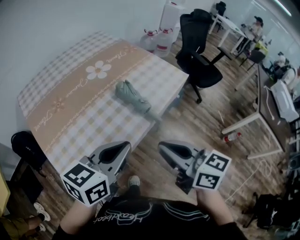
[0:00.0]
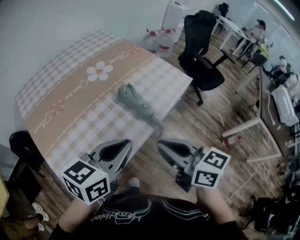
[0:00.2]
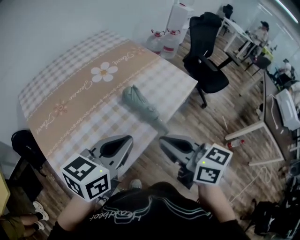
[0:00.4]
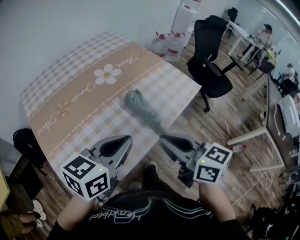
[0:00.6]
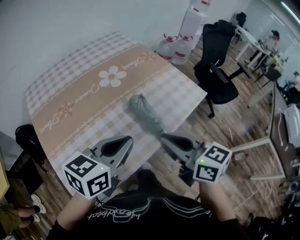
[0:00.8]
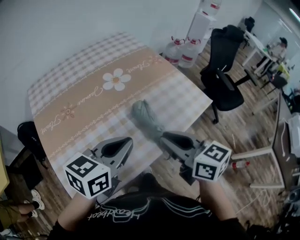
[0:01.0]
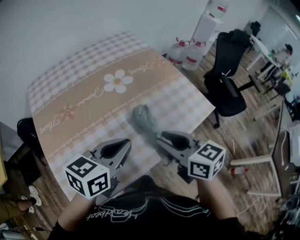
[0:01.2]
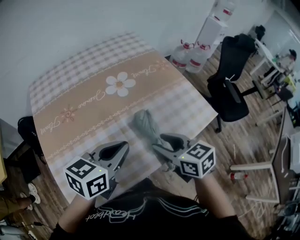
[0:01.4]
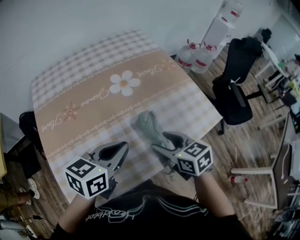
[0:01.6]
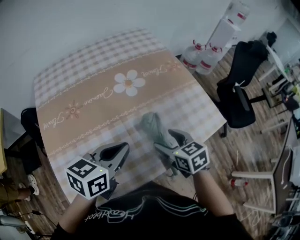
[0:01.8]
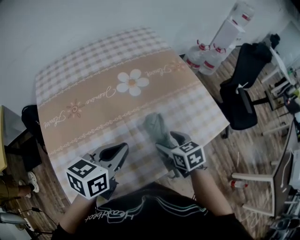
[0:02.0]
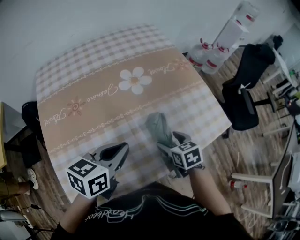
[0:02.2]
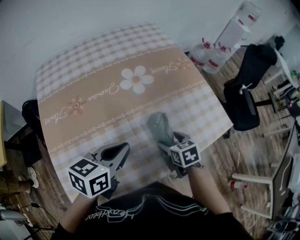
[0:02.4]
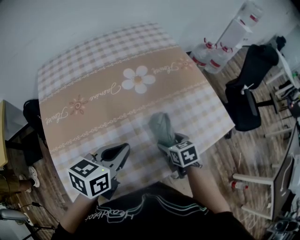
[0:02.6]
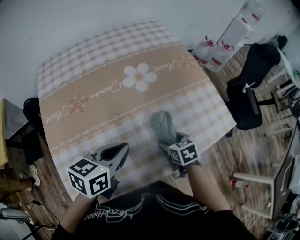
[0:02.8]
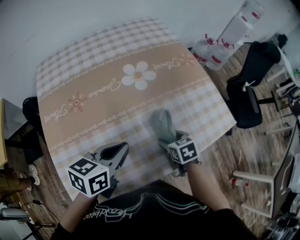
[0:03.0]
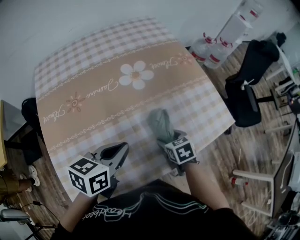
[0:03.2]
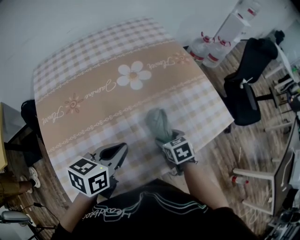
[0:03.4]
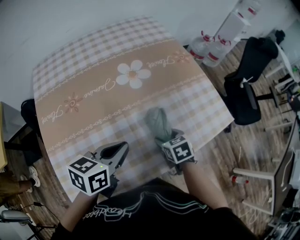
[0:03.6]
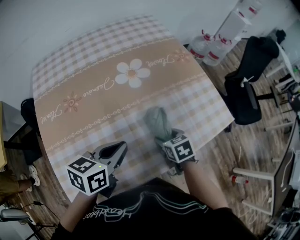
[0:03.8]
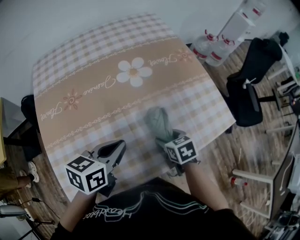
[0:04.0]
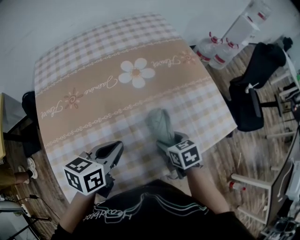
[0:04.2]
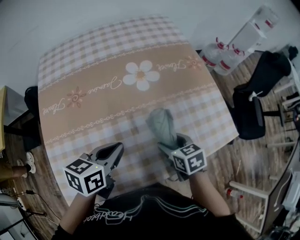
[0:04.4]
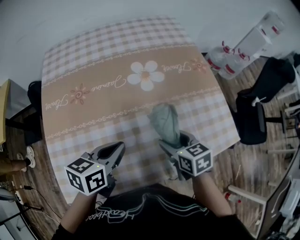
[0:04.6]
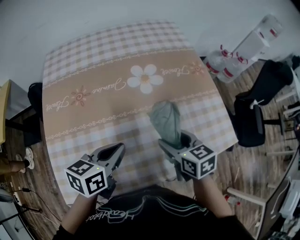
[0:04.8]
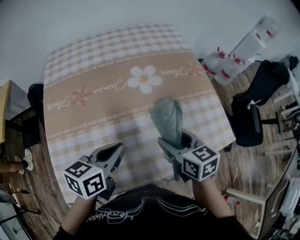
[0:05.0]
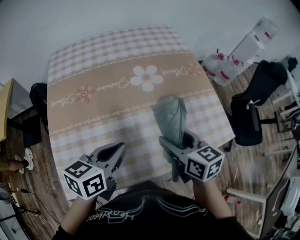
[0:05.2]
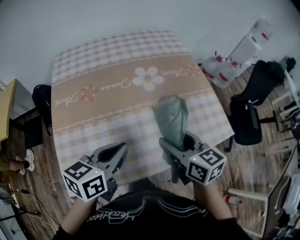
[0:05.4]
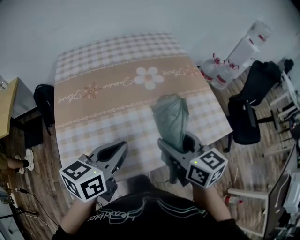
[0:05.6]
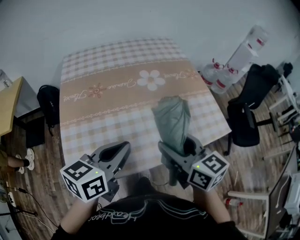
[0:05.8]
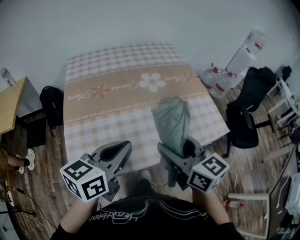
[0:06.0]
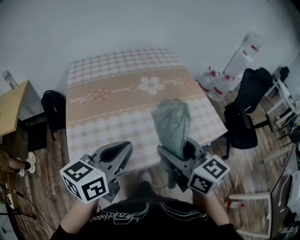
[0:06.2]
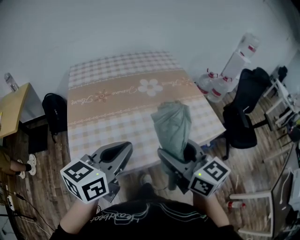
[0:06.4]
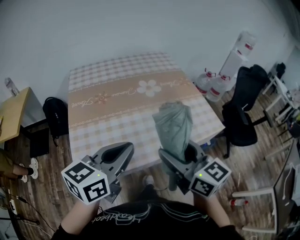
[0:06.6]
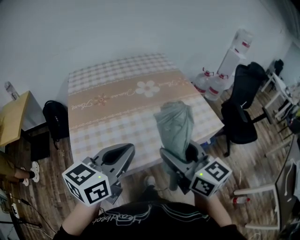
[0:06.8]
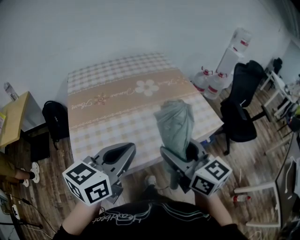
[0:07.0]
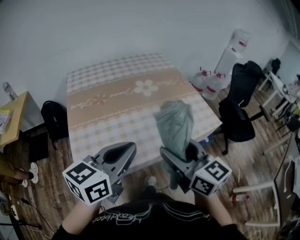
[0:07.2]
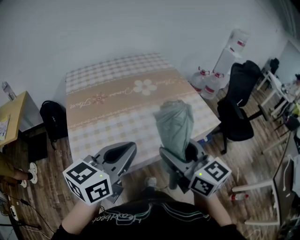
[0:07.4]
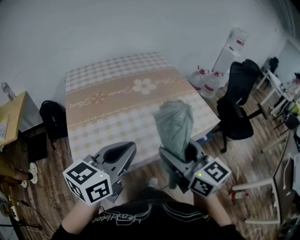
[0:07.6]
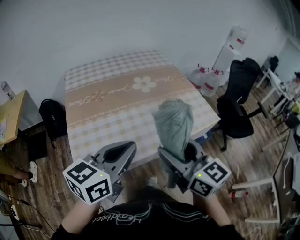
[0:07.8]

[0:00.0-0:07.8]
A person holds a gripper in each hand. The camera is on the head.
0:00.0 to 0:01.6: The left gripper is displaced forward by approximately 20 cm. Meanwhile the right gripper travels forward and downward by some 30 cm, turns by some 30 degrees, and opens up.
0:01.6 to 0:03.2: The right gripper is displaced downward by roughly 15 cm, and turns by approximately 20 degrees; the left gripper is displaced downward by roughly 5 cm.
0:03.2 to 0:04.6: The right gripper is displaced upward by about 10 cm.
0:04.6 to 0:06.2: The left gripper shifts about 25 cm backward and upward, and rotates some 20 degrees. The right gripper moves upward and backward, some 30 cm, and angles its fingers upward, by roughly 30 degrees.
0:06.2 to 0:07.8: The grippers both shift backward by some 5 cm.

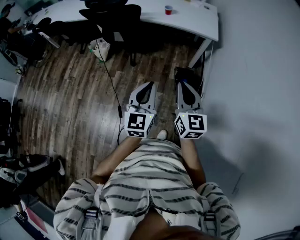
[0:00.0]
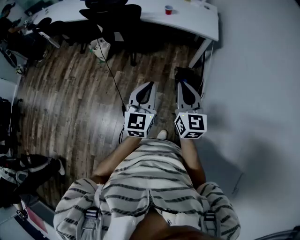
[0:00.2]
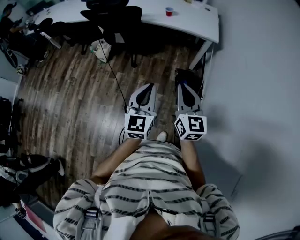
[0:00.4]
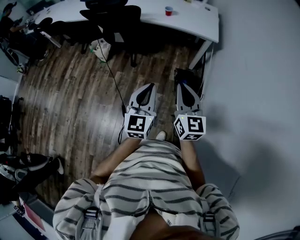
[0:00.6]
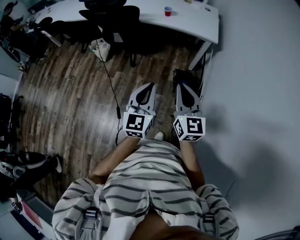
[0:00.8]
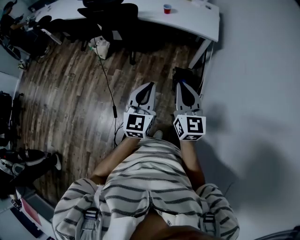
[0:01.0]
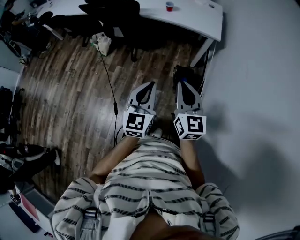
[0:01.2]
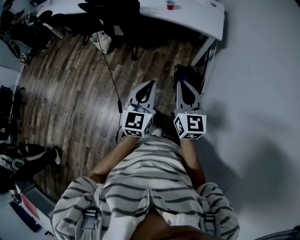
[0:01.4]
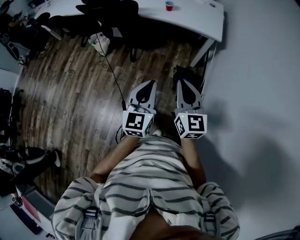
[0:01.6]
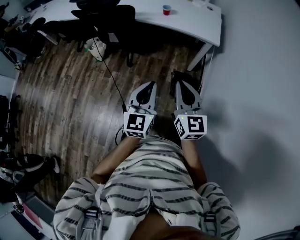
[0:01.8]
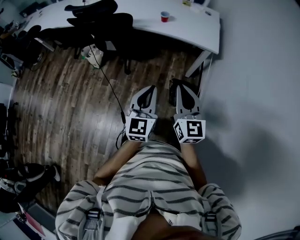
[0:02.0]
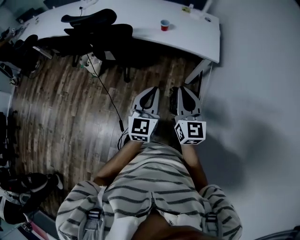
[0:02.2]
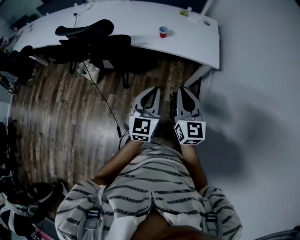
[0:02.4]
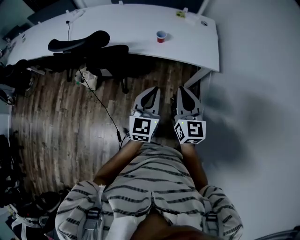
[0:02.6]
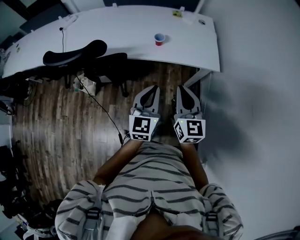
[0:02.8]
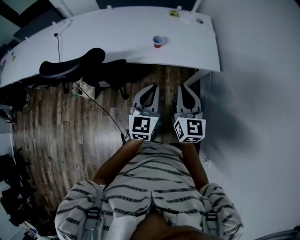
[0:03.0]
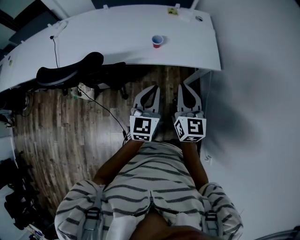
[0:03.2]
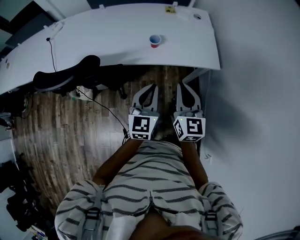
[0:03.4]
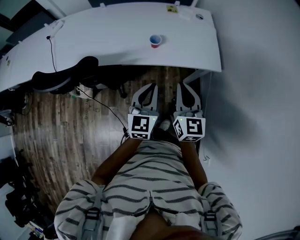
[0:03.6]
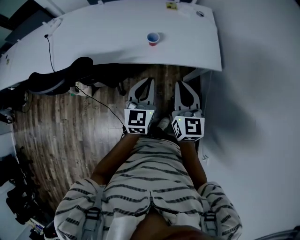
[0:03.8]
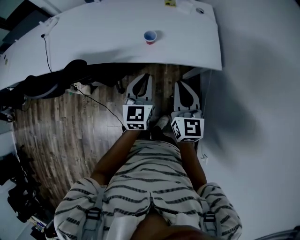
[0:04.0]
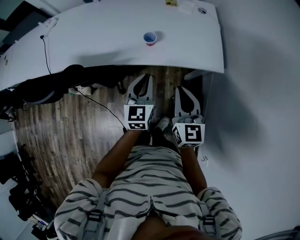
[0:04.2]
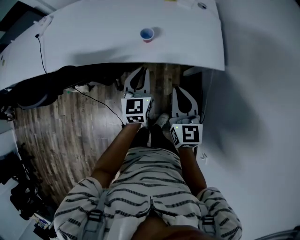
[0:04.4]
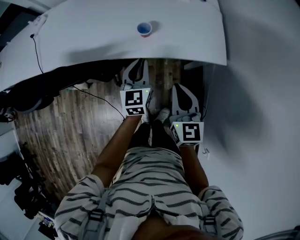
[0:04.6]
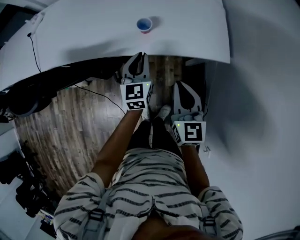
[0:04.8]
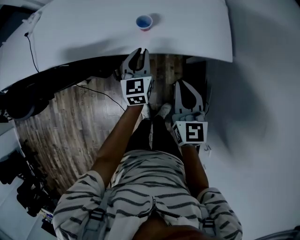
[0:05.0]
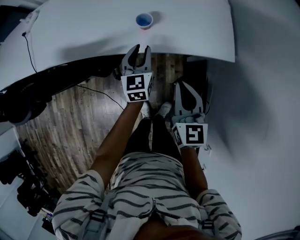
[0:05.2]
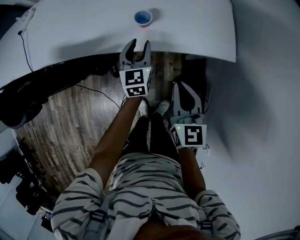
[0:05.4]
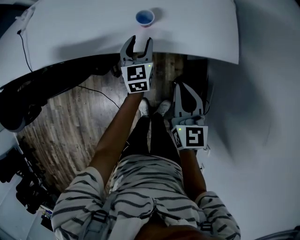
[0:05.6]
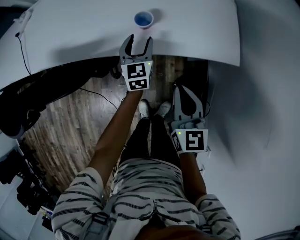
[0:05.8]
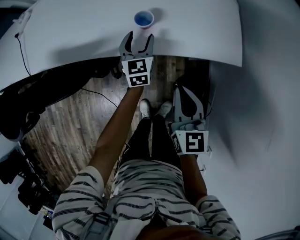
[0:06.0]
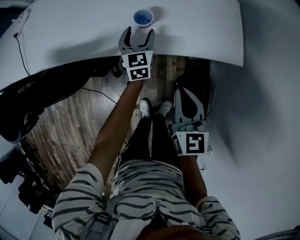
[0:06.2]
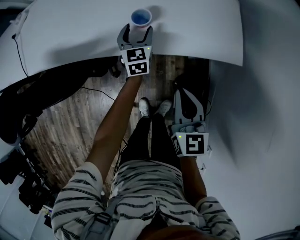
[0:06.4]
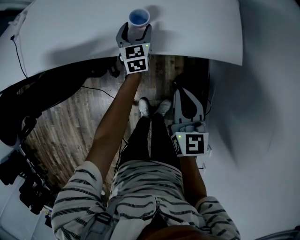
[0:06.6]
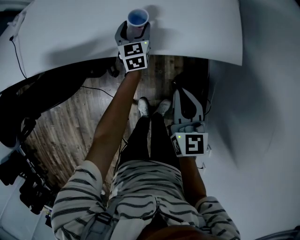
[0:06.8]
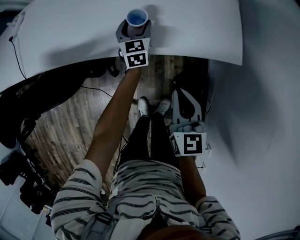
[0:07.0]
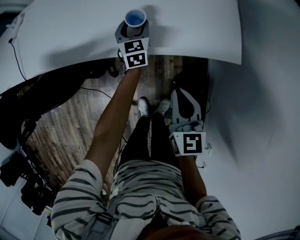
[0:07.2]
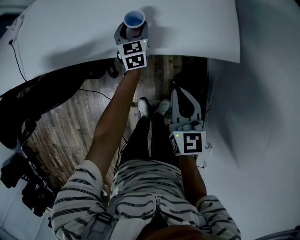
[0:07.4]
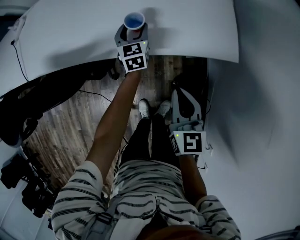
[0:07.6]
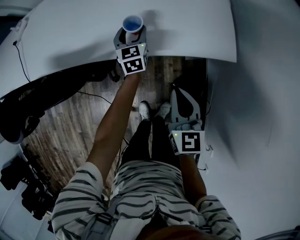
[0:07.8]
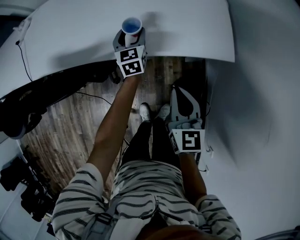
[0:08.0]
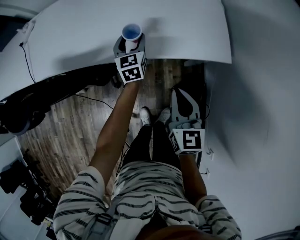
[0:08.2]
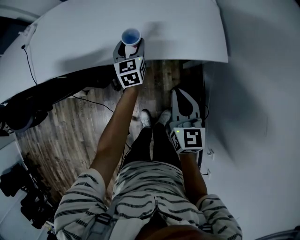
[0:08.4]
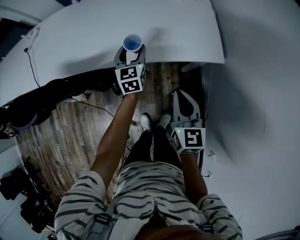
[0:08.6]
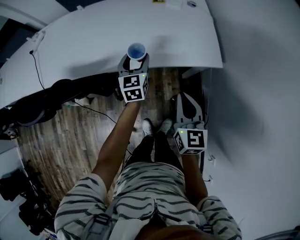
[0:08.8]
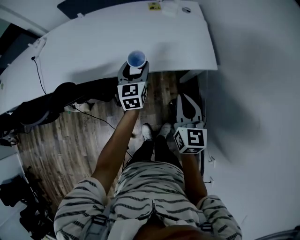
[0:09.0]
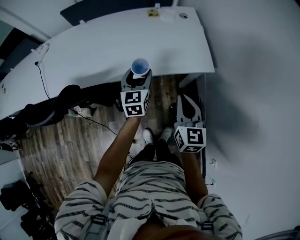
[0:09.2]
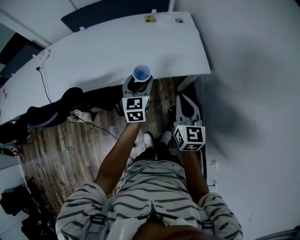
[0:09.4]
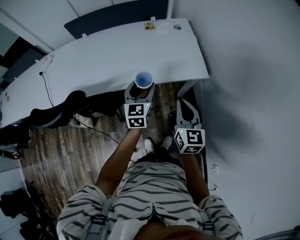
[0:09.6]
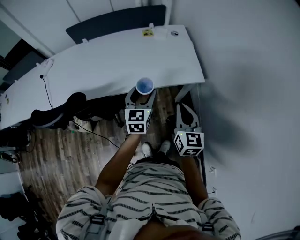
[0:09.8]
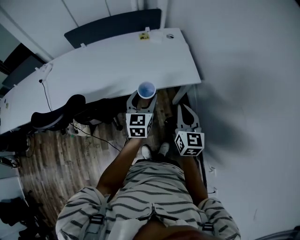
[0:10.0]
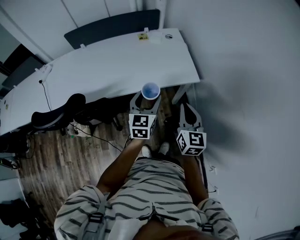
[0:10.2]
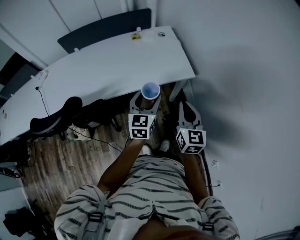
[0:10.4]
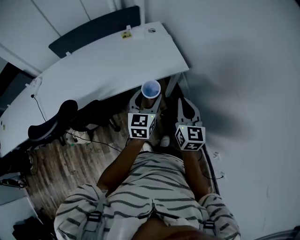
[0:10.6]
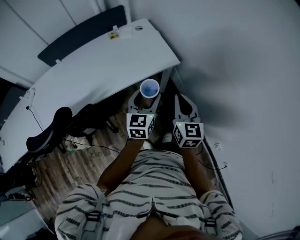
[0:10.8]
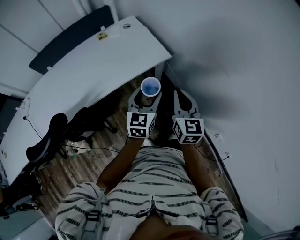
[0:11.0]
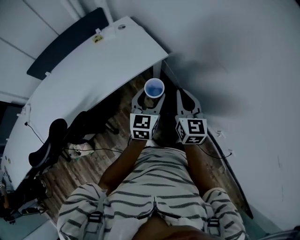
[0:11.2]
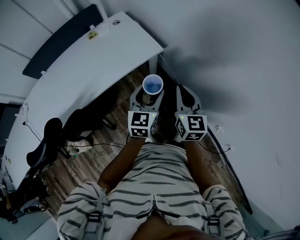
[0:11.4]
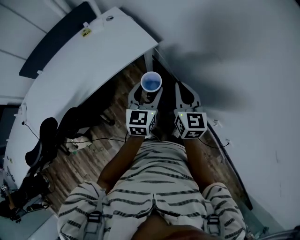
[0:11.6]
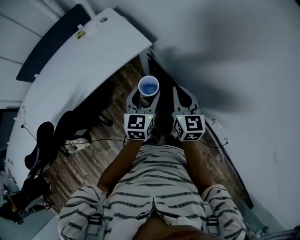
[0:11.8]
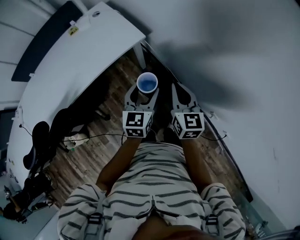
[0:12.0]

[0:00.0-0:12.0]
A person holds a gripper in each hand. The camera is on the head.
0:00.0 to 0:01.6: The left gripper heads to the right and forward, covering some 10 cm; the right gripper is displaced forward and to the right by about 10 cm.
0:01.6 to 0:03.0: The two grippers travel together, forward, about 40 cm.
0:03.0 to 0:04.4: The left gripper moves forward and downward, about 20 cm; the right gripper heads forward and downward, covering roughly 10 cm.
0:04.4 to 0:06.0: The left gripper heads forward and downward, covering about 20 cm, and opens. The right gripper shifts roughly 10 cm downward.
0:06.0 to 0:07.6: The left gripper moves forward, some 5 cm.
0:07.6 to 0:09.0: The left gripper travels upward and backward by about 20 cm; the right gripper goes approximately 10 cm upward and backward.
0:09.0 to 0:10.4: The right gripper heads upward, backward and to the right, covering about 10 cm. The left gripper shifts approximately 20 cm backward, to the right and upward.
0:10.4 to 0:12.0: Both grippers travel together to the right, about 25 cm. The left gripper rotates about 20 degrees.

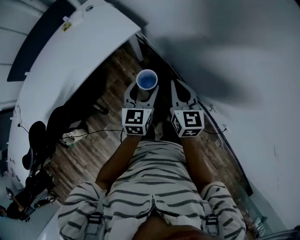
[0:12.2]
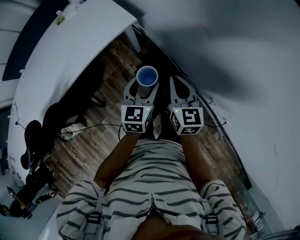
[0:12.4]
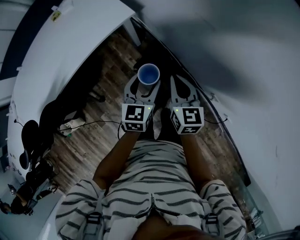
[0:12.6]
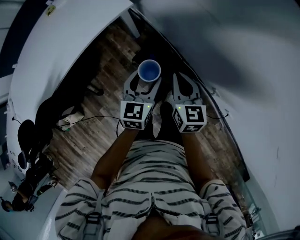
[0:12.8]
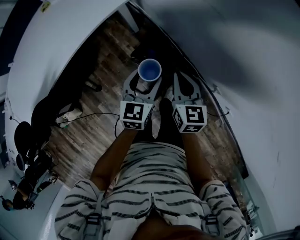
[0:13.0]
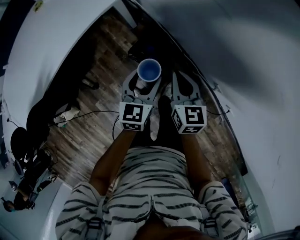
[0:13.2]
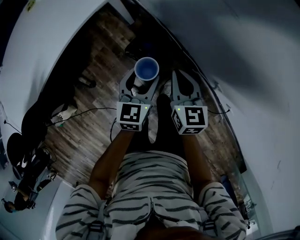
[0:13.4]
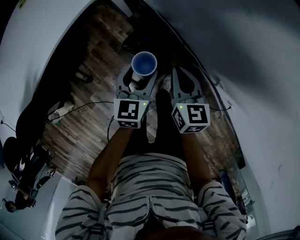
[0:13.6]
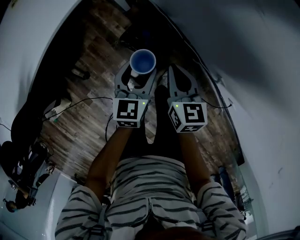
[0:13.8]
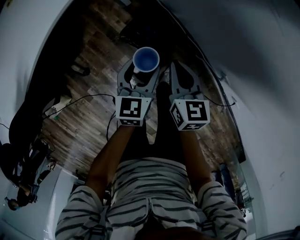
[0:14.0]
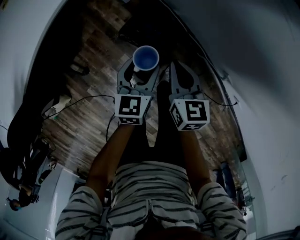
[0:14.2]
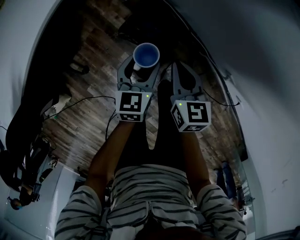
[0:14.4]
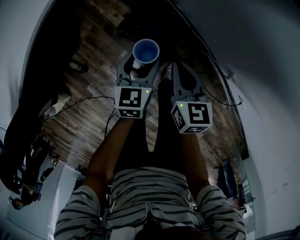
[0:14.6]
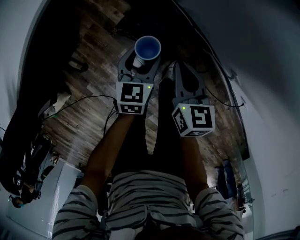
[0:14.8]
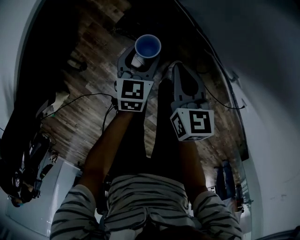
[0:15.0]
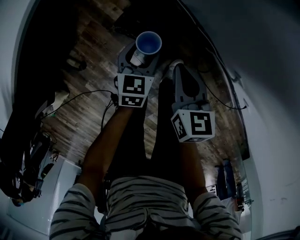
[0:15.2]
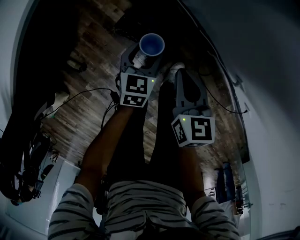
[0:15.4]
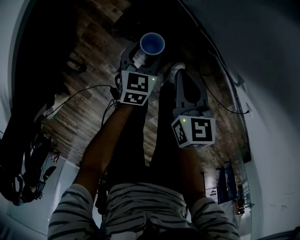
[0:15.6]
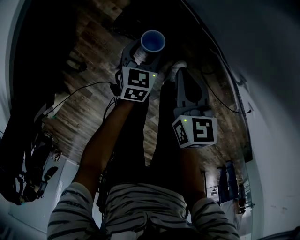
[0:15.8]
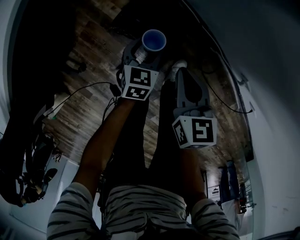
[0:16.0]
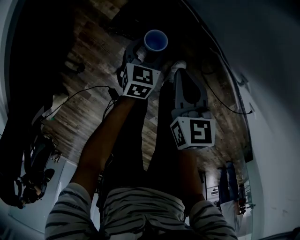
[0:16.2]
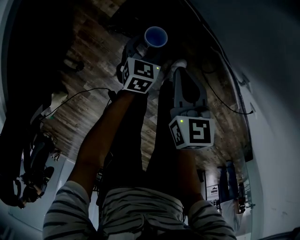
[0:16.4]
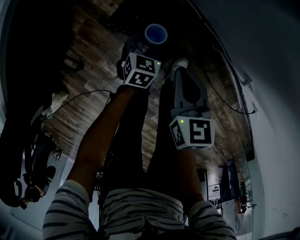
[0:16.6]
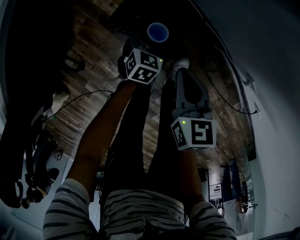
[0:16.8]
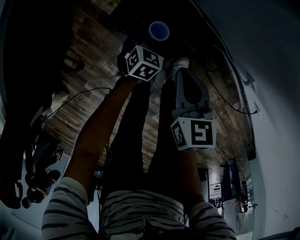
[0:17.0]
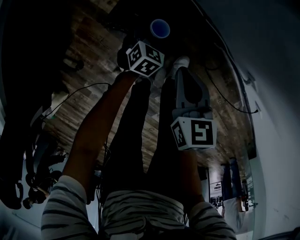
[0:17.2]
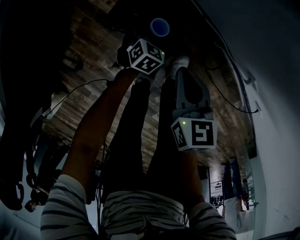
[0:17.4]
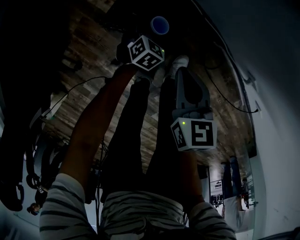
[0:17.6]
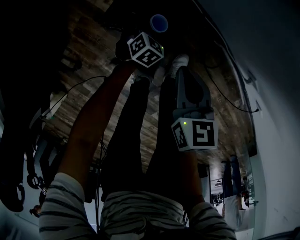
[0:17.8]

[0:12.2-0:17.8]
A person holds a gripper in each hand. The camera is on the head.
0:12.2 to 0:13.6: Both grippers travel together downward, approximately 20 cm.
0:13.6 to 0:15.0: The two grippers go approximately 15 cm downward.
0:15.0 to 0:16.4: The left gripper shifts roughly 15 cm downward; the right gripper shifts approximately 5 cm downward.
0:16.4 to 0:17.8: The left gripper travels downward by approximately 10 cm, and swivels roughly 30 degrees.
